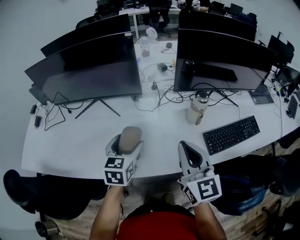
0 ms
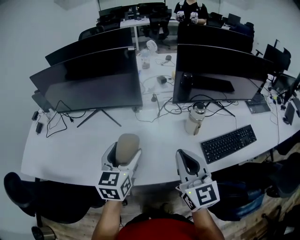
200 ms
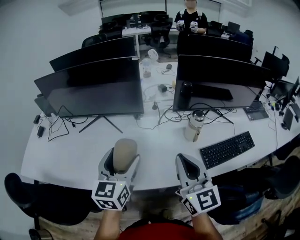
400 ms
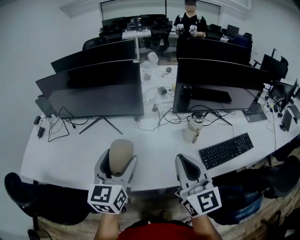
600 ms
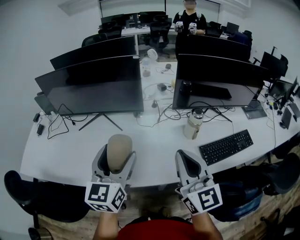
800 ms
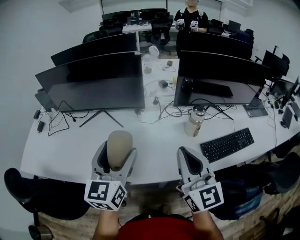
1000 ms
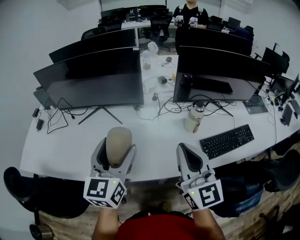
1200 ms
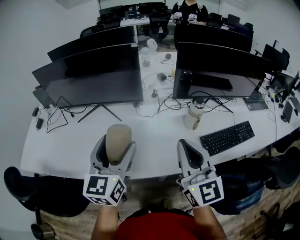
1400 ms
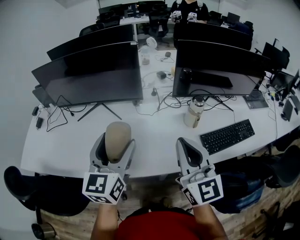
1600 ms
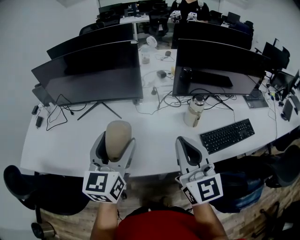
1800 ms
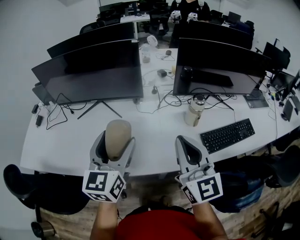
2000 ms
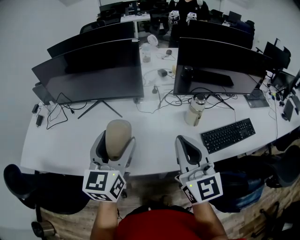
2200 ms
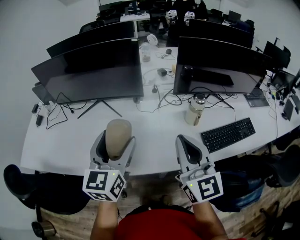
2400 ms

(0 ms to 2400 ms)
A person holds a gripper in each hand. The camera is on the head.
0 ms - 1200 ms: The left gripper shifts approximately 15 cm upward, and turns by approximately 30 degrees. Meanwhile the right gripper travels upward by about 10 cm.
1200 ms - 2400 ms: The grippers stay close to where they were, moving slightly.

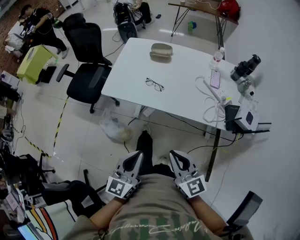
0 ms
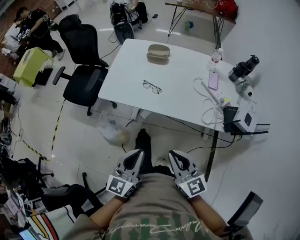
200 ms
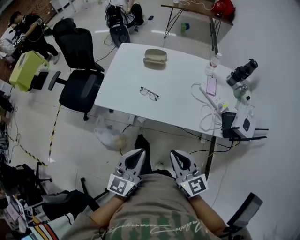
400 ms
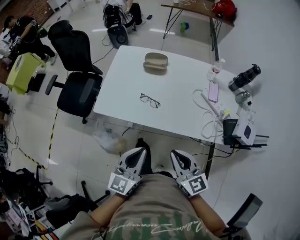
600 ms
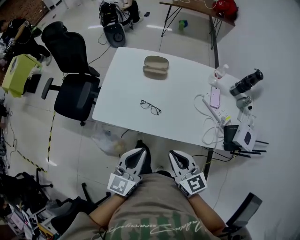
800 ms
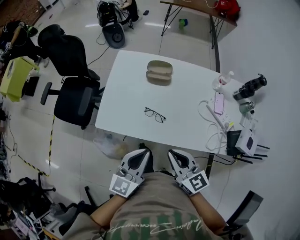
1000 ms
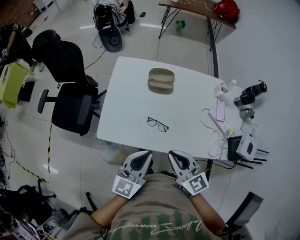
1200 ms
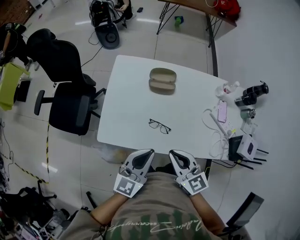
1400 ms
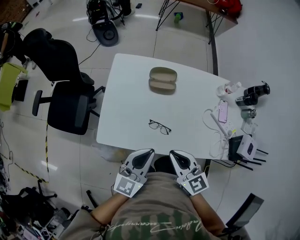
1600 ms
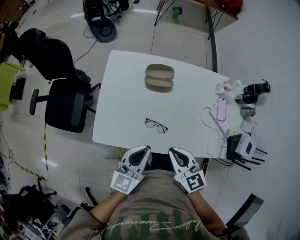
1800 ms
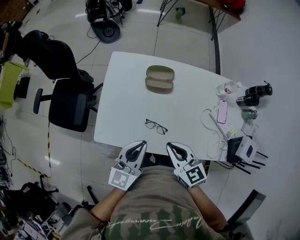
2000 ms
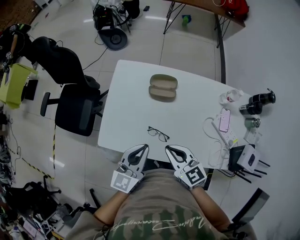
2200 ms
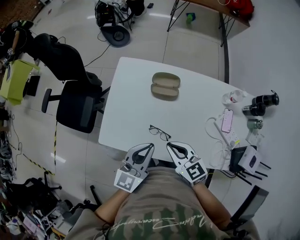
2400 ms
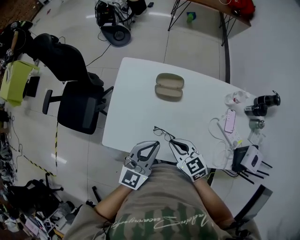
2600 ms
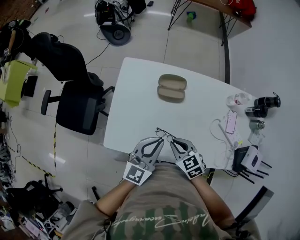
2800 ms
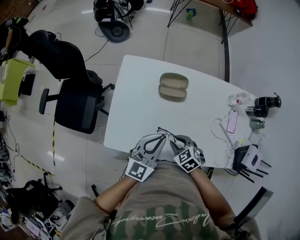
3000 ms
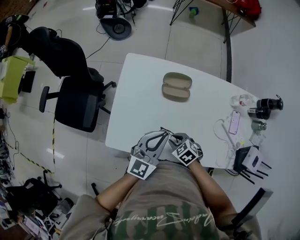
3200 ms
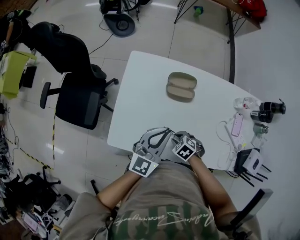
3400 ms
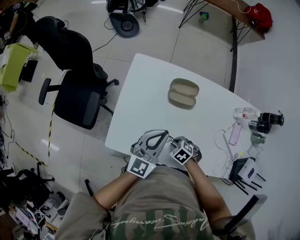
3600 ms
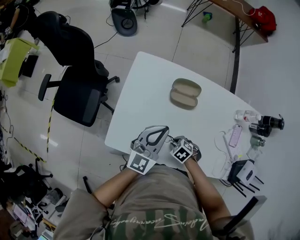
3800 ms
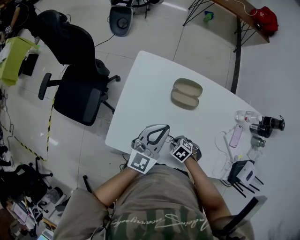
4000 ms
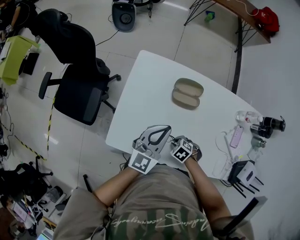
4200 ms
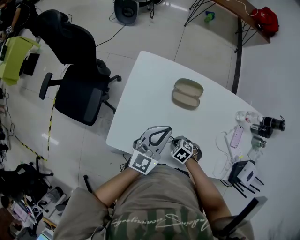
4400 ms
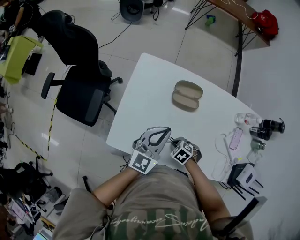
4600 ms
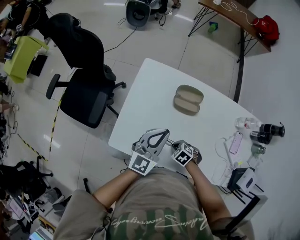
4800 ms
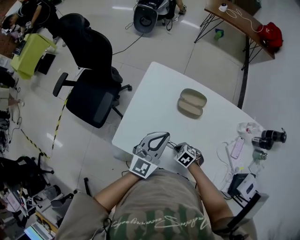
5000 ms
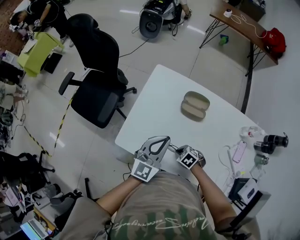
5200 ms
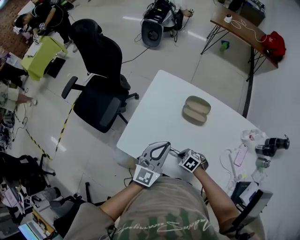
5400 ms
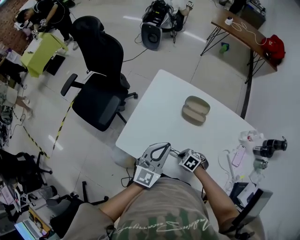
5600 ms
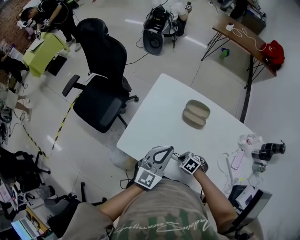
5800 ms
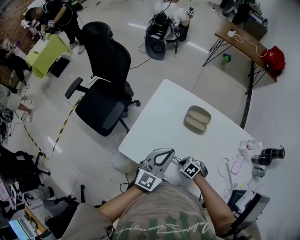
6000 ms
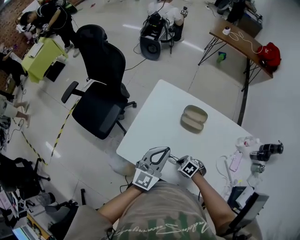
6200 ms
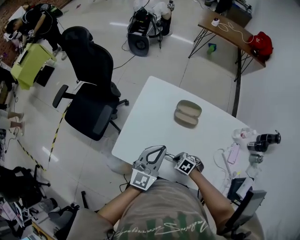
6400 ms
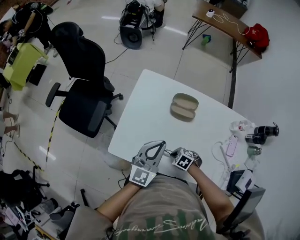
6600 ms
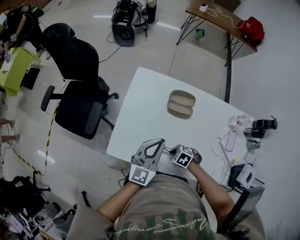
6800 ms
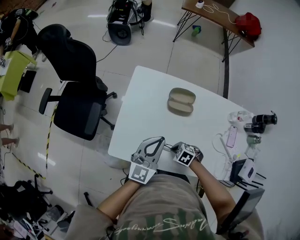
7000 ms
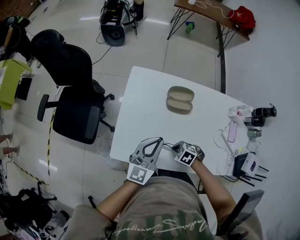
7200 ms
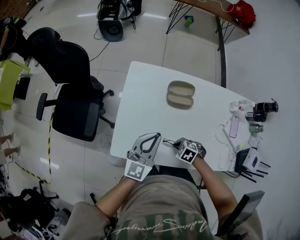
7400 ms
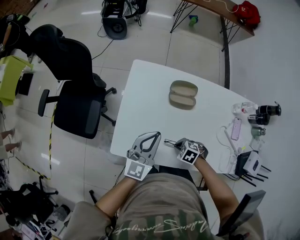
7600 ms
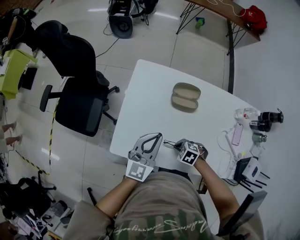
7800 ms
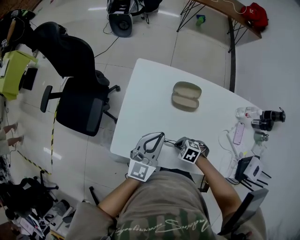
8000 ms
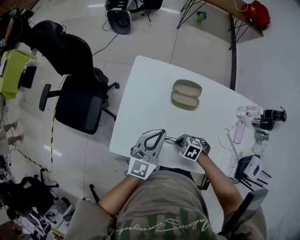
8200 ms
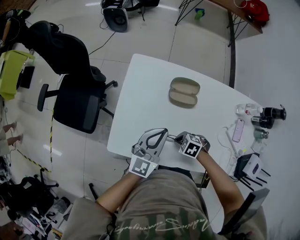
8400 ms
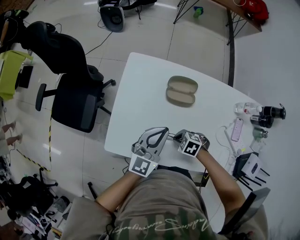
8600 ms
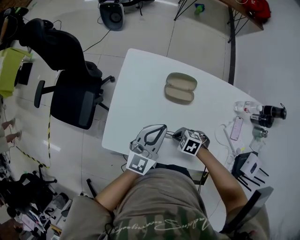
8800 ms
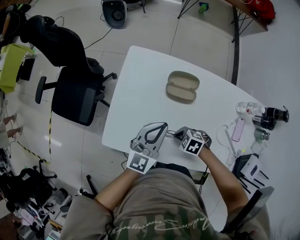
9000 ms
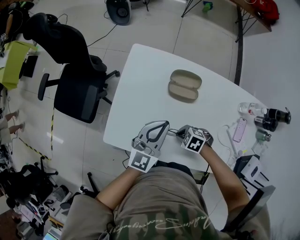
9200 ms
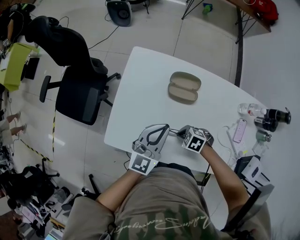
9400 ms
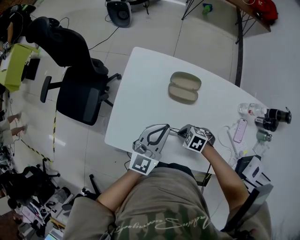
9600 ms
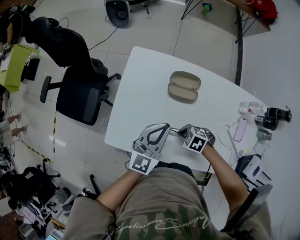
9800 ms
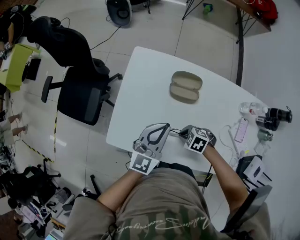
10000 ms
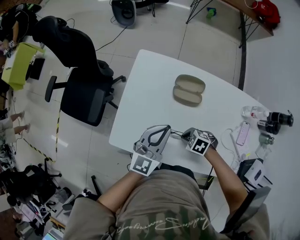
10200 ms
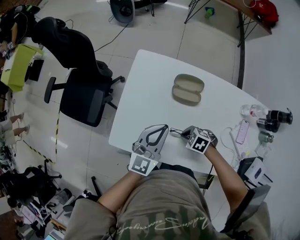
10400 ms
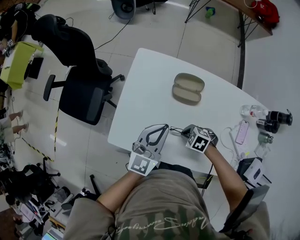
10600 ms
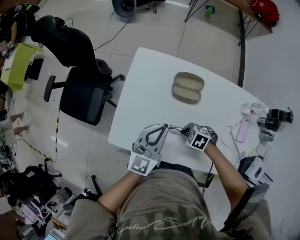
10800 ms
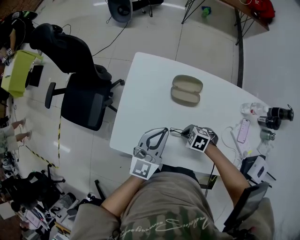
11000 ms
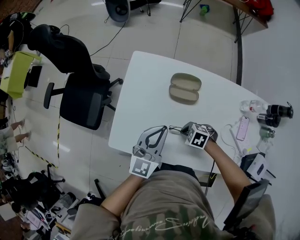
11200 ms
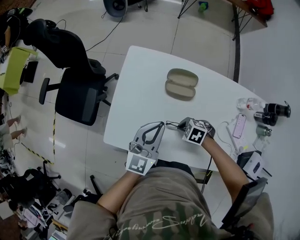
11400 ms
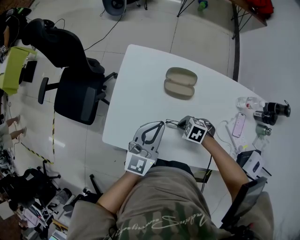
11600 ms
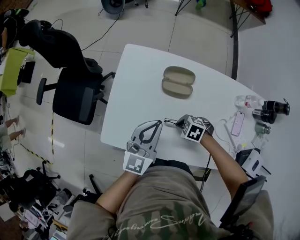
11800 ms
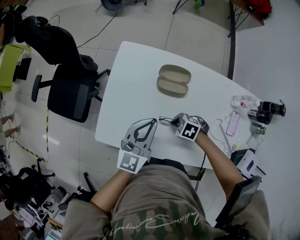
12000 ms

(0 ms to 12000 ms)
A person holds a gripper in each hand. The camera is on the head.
0 ms - 1600 ms: The grippers both shift forward by approximately 35 cm. The left gripper swivels roughly 20 degrees.
1600 ms - 3000 ms: The left gripper goes roughly 10 cm forward. Meanwhile the right gripper goes roughly 20 cm downward and forward, and angles its fingers downward, by roughly 40 degrees.
3000 ms - 4400 ms: The left gripper ends up some 10 cm from where it was; the right gripper heads downward, covering approximately 10 cm, and changes its angle by roughly 30 degrees.
4400 ms - 6000 ms: The left gripper ends up roughly 10 cm from where it was.
6000 ms - 7600 ms: The left gripper moves some 5 cm.
7600 ms - 9000 ms: The left gripper shifts by about 10 cm.
9000 ms - 12000 ms: There are only small adjustments of the grippers.

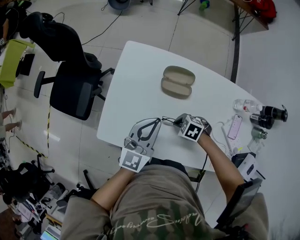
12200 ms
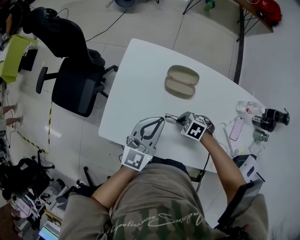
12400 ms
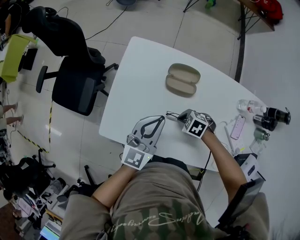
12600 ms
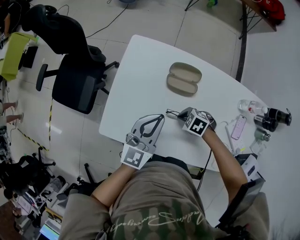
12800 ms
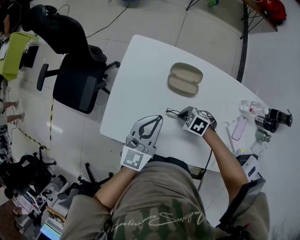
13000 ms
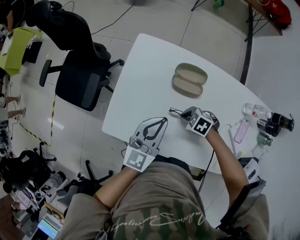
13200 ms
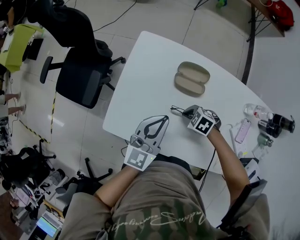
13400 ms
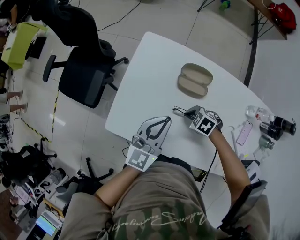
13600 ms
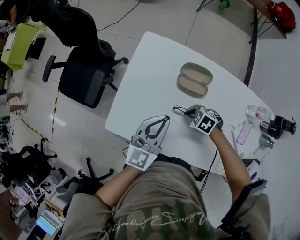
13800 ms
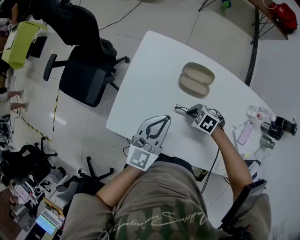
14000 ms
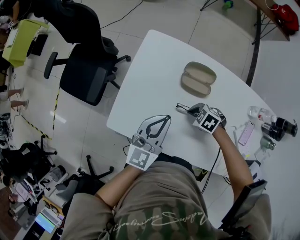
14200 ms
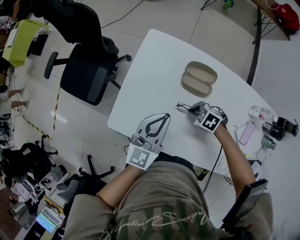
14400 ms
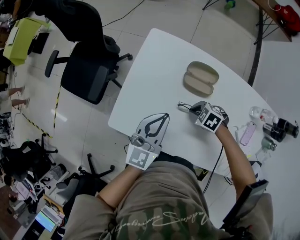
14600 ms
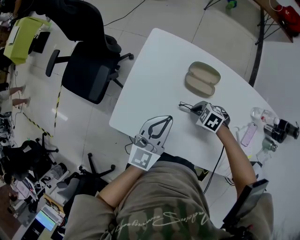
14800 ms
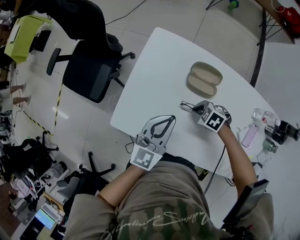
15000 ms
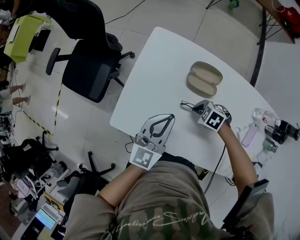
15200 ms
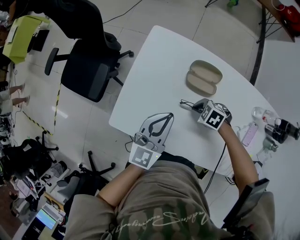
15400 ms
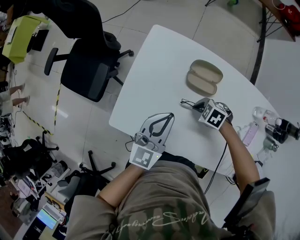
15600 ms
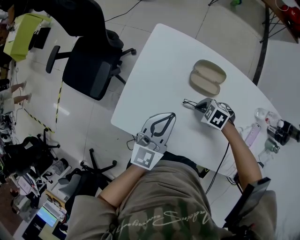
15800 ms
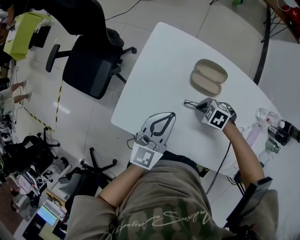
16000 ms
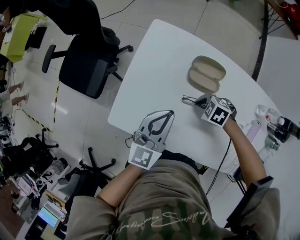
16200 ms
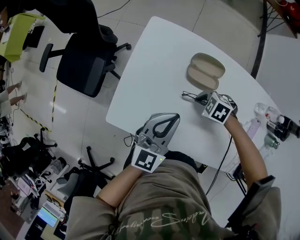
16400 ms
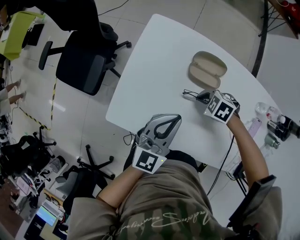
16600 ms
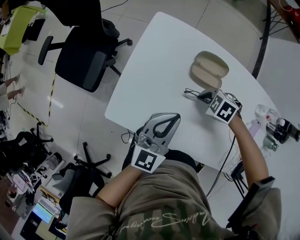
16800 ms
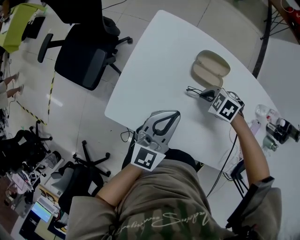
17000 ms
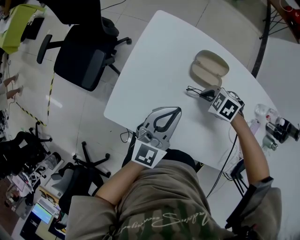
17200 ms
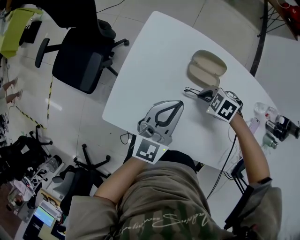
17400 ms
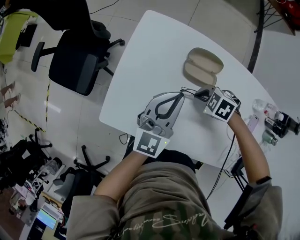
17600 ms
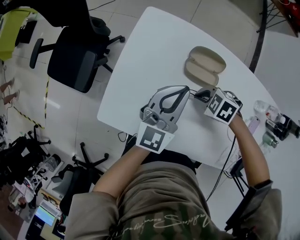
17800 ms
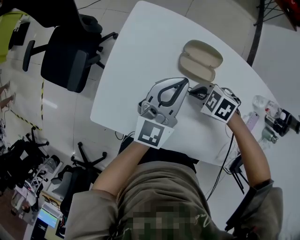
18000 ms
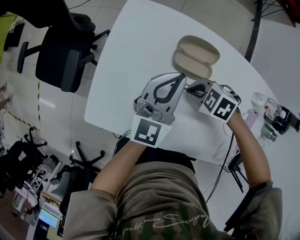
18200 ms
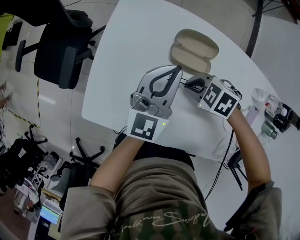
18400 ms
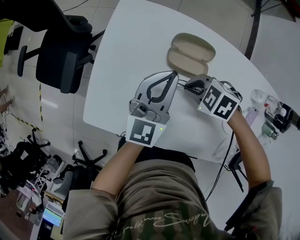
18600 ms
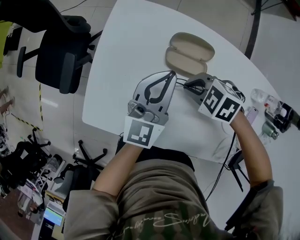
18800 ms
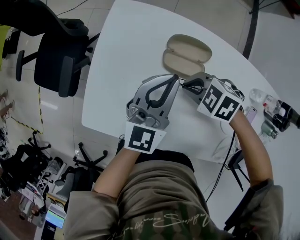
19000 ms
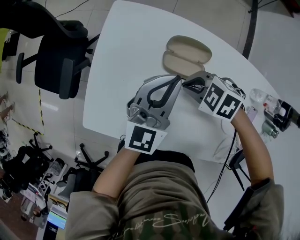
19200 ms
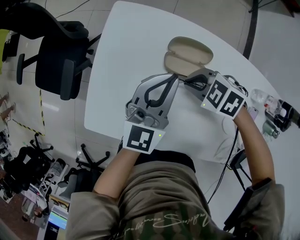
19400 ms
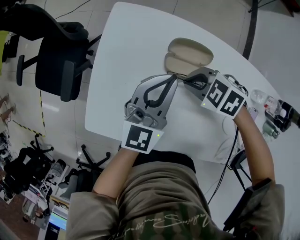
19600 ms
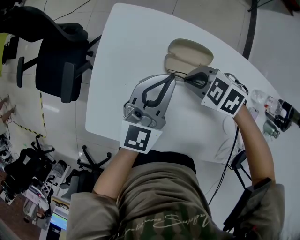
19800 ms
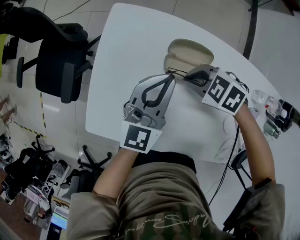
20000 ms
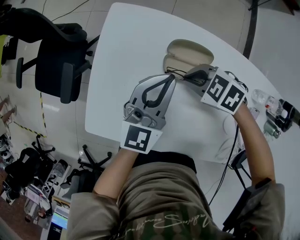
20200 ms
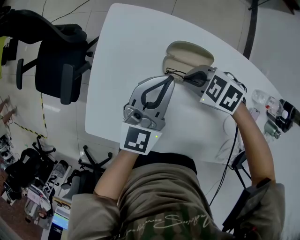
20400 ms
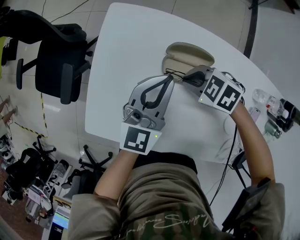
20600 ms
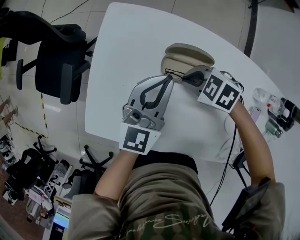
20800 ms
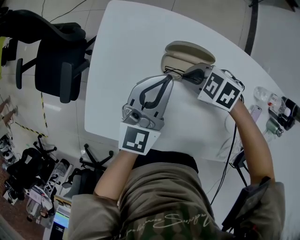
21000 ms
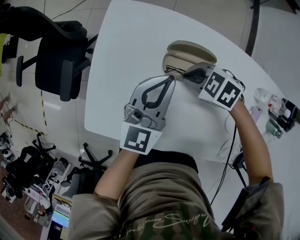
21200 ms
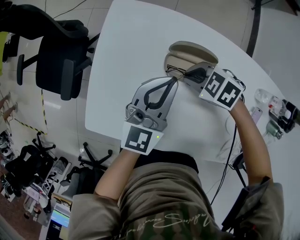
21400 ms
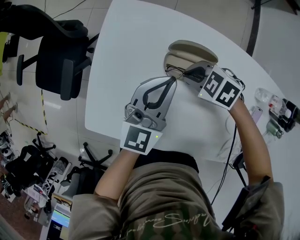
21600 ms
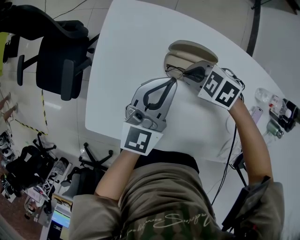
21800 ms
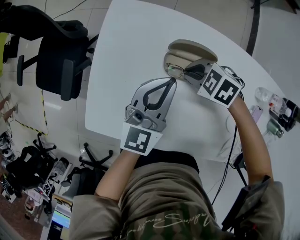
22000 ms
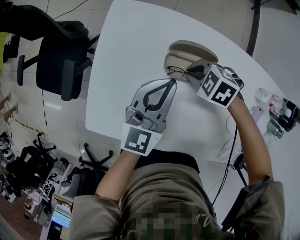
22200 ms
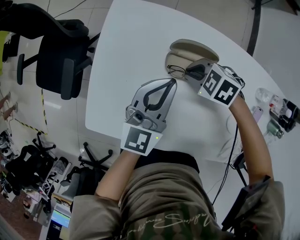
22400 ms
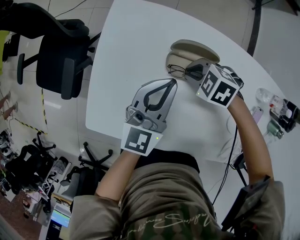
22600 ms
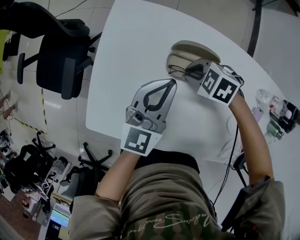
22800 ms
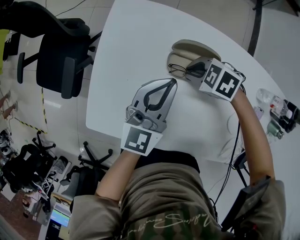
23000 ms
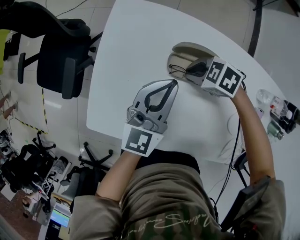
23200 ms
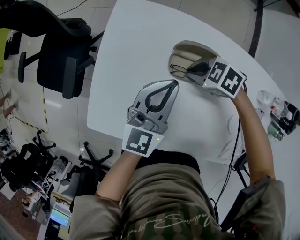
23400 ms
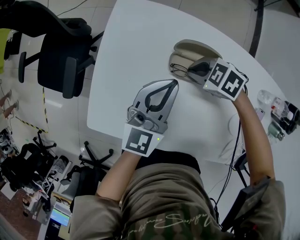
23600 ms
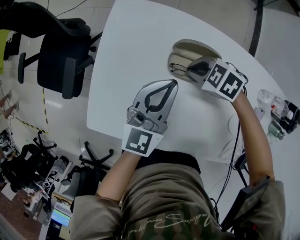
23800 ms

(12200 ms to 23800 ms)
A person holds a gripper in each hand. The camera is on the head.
12200 ms - 15000 ms: The grippers make only small movements.
15000 ms - 16600 ms: The grippers stay close to where they were, moving slightly.
16600 ms - 18000 ms: The left gripper changes place by approximately 10 cm.
18000 ms - 19400 ms: The right gripper shifts by some 5 cm.
19400 ms - 22400 ms: There are only small adjustments of the grippers.
22400 ms - 23800 ms: There are only small adjustments of the grippers.
